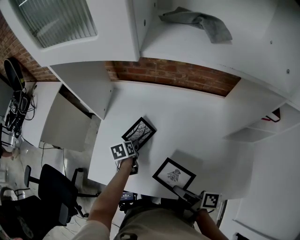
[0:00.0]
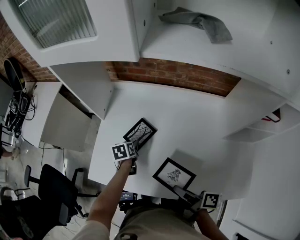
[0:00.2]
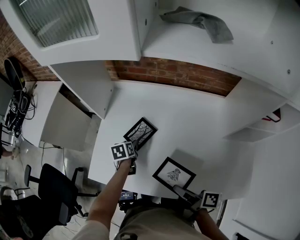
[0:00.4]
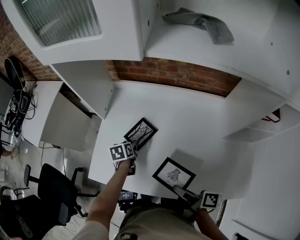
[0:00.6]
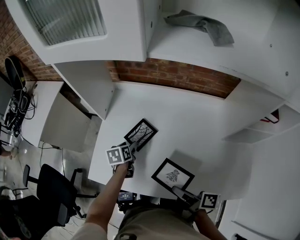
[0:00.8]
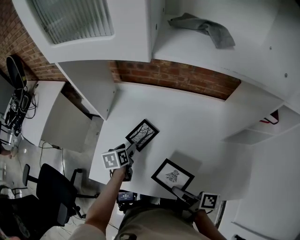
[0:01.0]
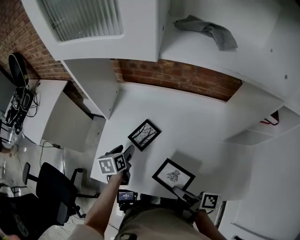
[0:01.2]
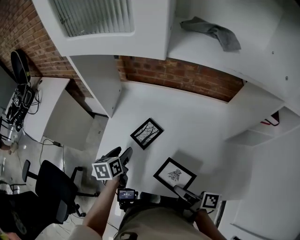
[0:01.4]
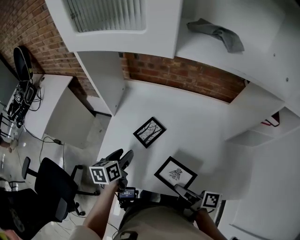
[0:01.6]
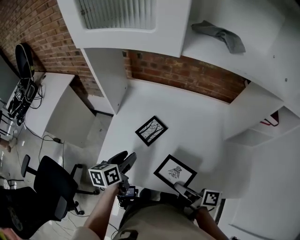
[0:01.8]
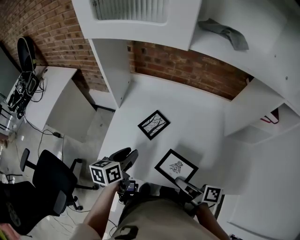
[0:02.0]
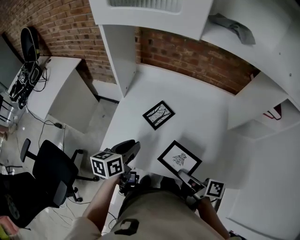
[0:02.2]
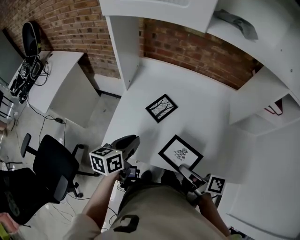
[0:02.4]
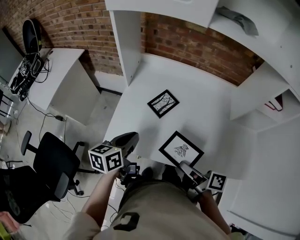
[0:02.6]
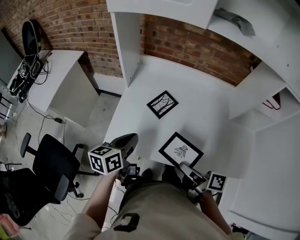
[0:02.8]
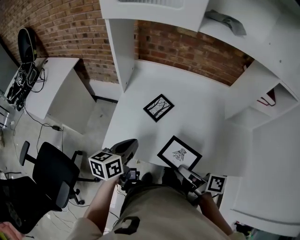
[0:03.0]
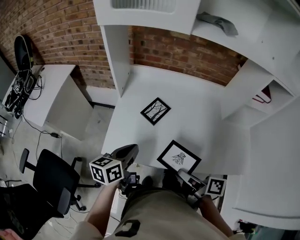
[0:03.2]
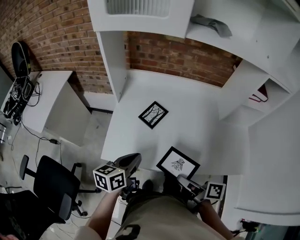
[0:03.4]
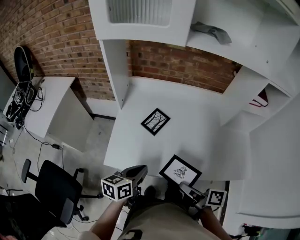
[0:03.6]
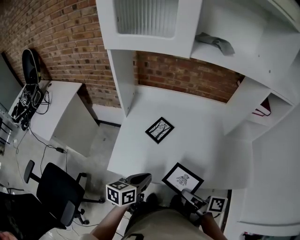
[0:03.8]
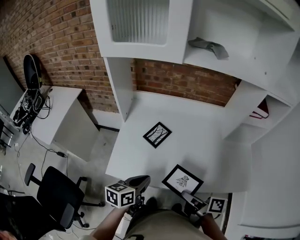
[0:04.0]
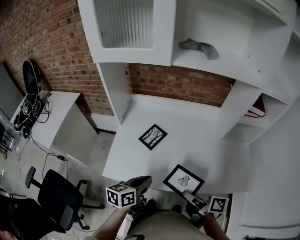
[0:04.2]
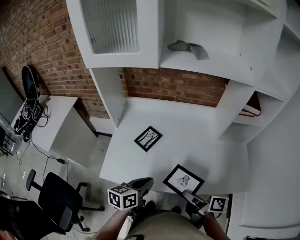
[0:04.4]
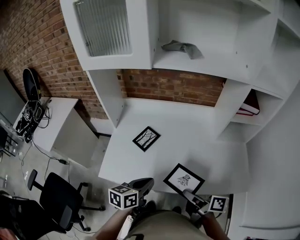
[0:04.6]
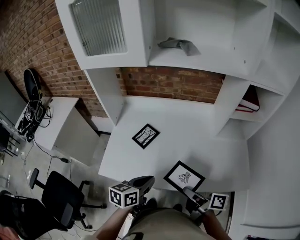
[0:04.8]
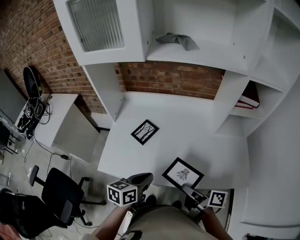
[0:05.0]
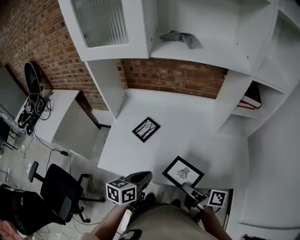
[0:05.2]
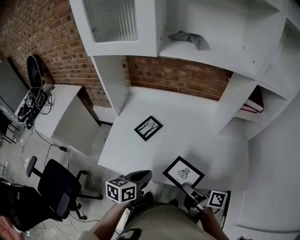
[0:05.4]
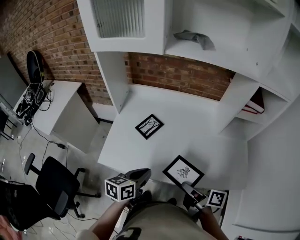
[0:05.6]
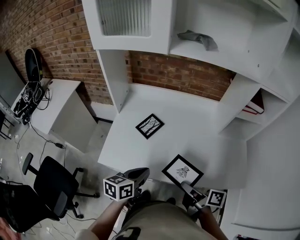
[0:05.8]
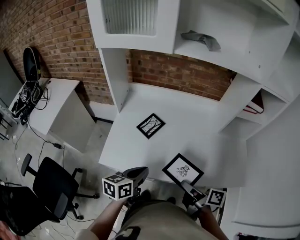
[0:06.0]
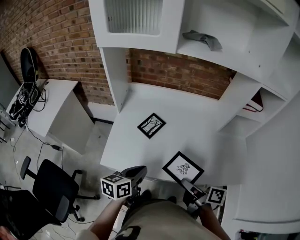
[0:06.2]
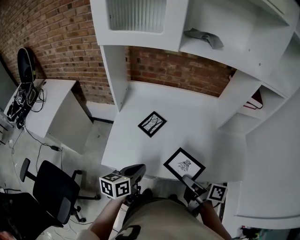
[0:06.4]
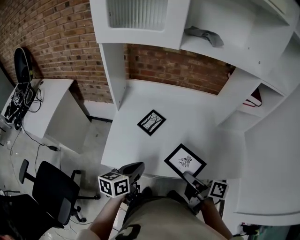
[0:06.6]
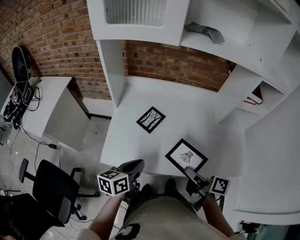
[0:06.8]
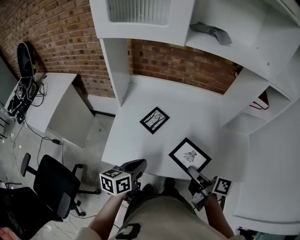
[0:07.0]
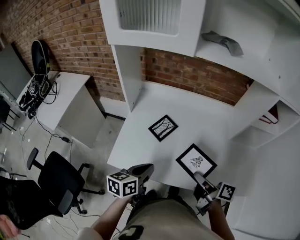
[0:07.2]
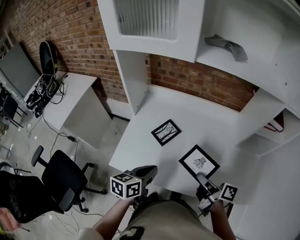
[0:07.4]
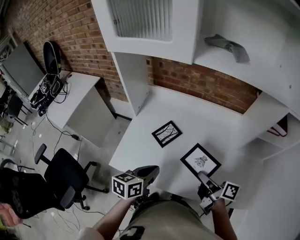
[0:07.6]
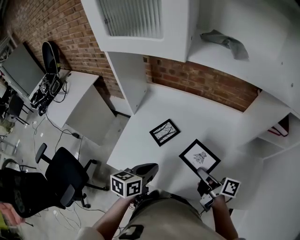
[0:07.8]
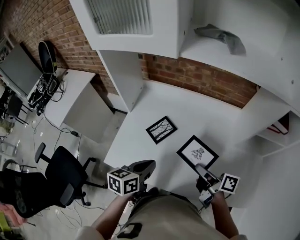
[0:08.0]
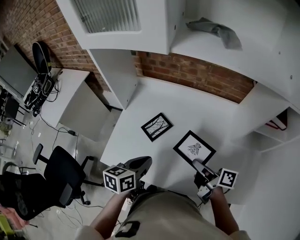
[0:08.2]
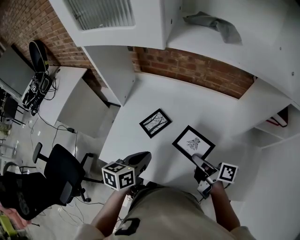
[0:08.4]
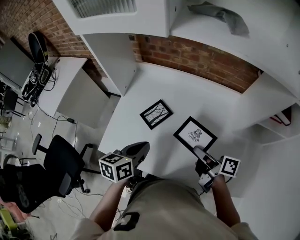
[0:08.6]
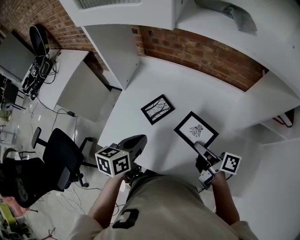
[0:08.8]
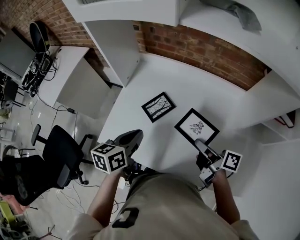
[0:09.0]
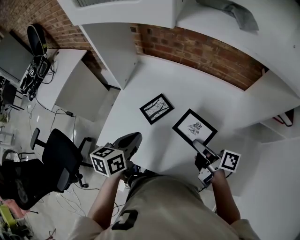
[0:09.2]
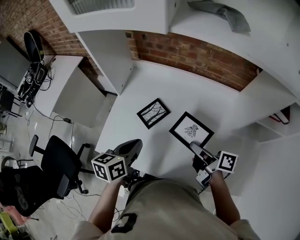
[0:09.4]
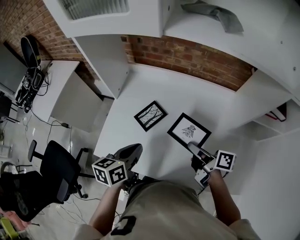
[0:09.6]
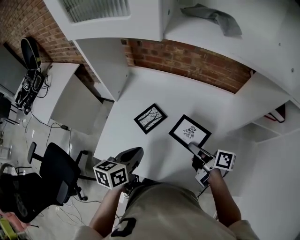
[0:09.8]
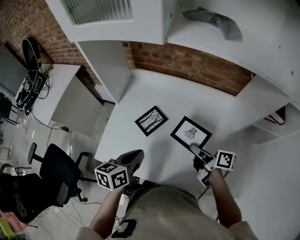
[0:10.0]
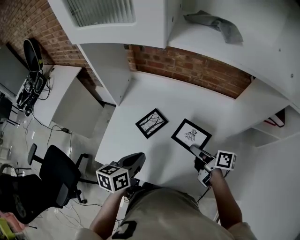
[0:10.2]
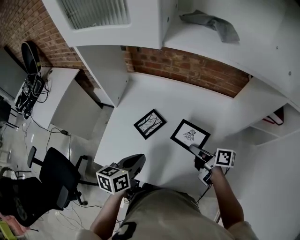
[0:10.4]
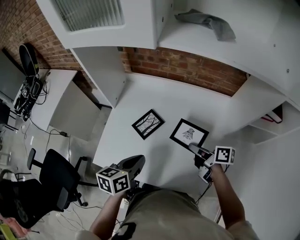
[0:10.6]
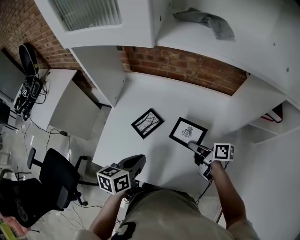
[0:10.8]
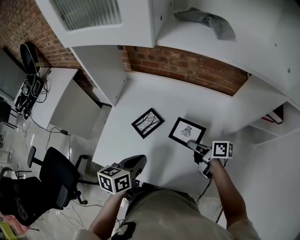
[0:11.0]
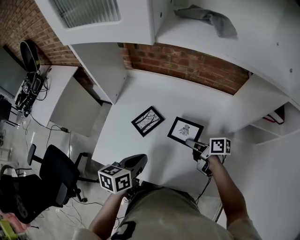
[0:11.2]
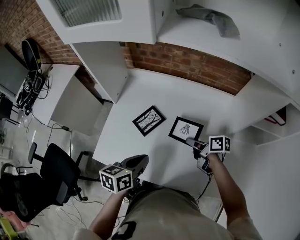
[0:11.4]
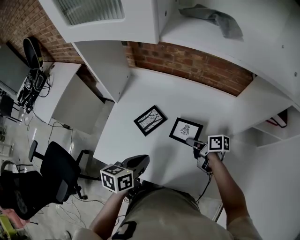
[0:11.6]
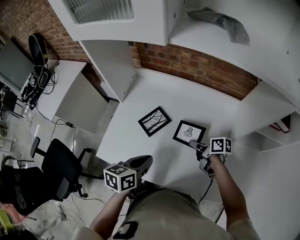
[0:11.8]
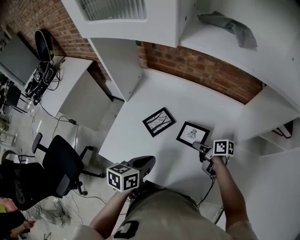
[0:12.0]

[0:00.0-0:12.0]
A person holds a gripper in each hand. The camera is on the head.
0:00.0 to 0:01.6: The left gripper is displaced upward by roughly 15 cm, and swivels approximately 20 degrees.
0:01.6 to 0:03.0: The left gripper moves approximately 10 cm, and closes up.
0:03.0 to 0:04.4: The left gripper moves approximately 15 cm.
0:06.0 to 0:07.6: The left gripper ends up roughly 5 cm from where it was.
0:07.6 to 0:09.0: The left gripper shifts by roughly 5 cm.

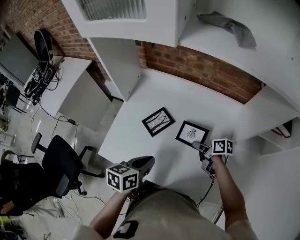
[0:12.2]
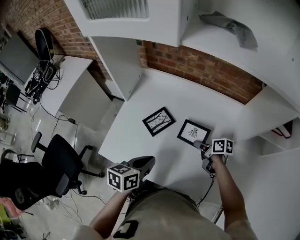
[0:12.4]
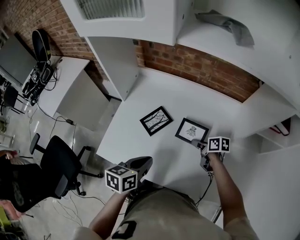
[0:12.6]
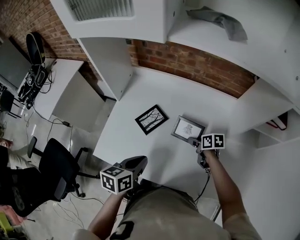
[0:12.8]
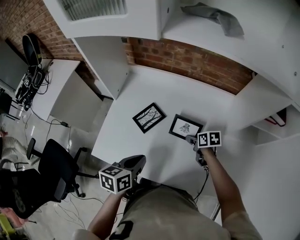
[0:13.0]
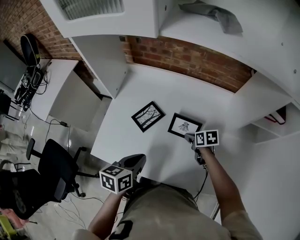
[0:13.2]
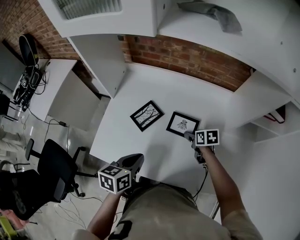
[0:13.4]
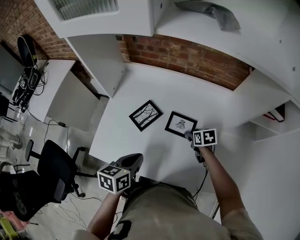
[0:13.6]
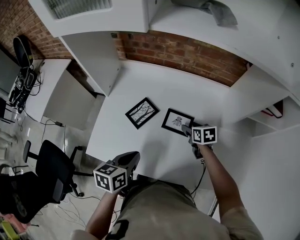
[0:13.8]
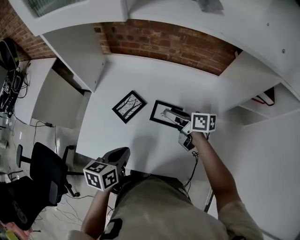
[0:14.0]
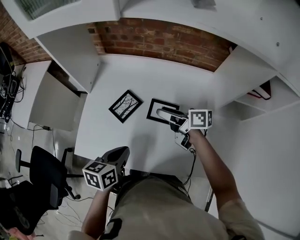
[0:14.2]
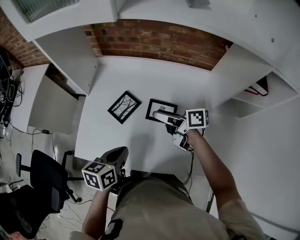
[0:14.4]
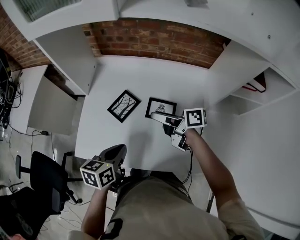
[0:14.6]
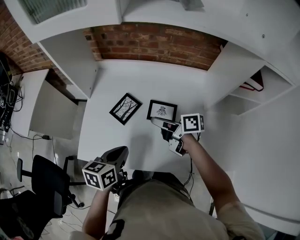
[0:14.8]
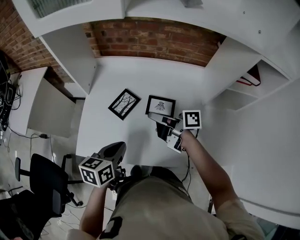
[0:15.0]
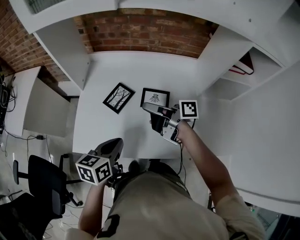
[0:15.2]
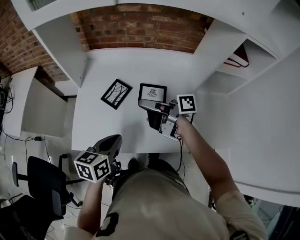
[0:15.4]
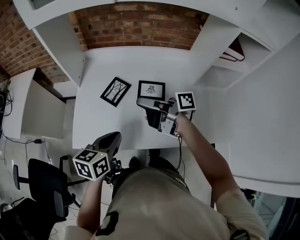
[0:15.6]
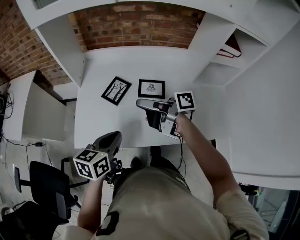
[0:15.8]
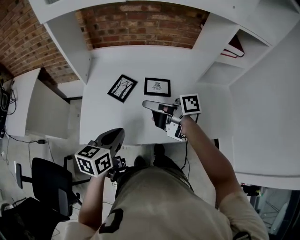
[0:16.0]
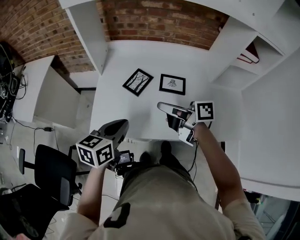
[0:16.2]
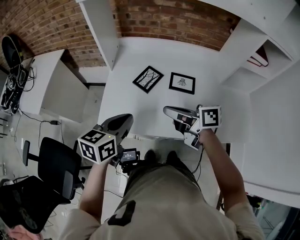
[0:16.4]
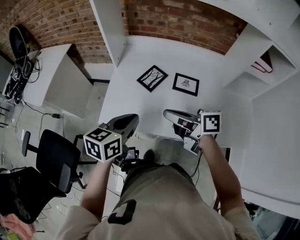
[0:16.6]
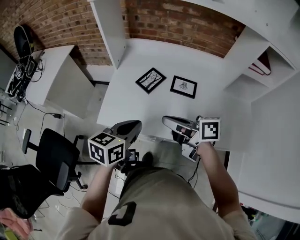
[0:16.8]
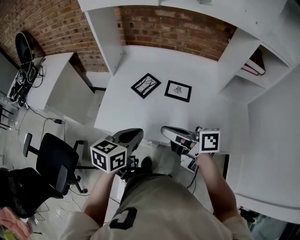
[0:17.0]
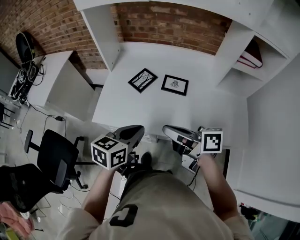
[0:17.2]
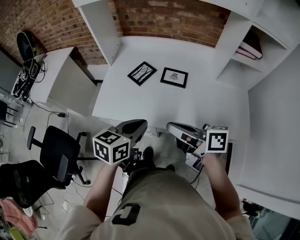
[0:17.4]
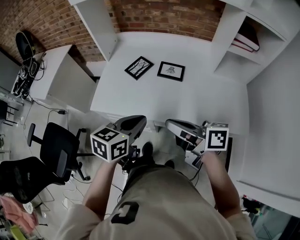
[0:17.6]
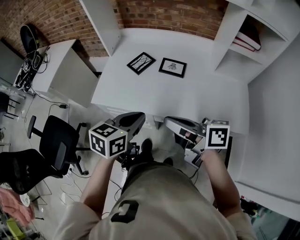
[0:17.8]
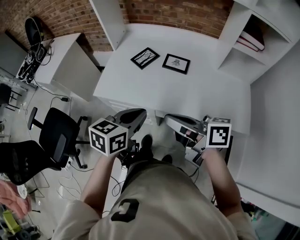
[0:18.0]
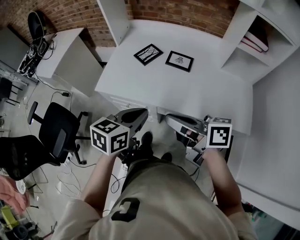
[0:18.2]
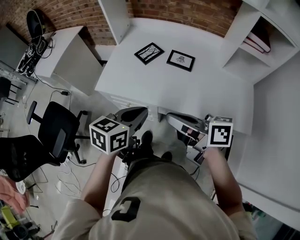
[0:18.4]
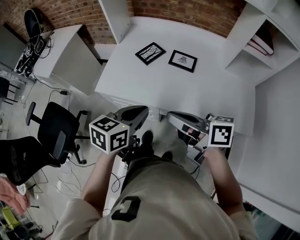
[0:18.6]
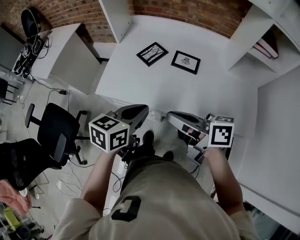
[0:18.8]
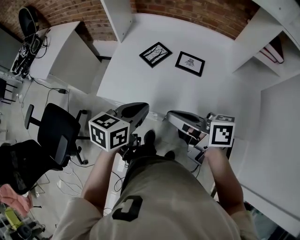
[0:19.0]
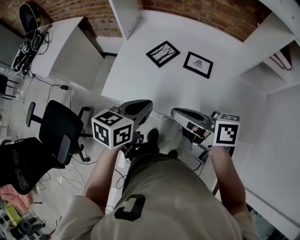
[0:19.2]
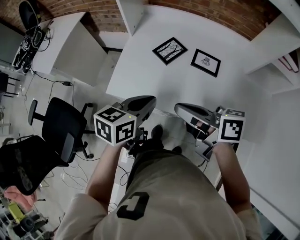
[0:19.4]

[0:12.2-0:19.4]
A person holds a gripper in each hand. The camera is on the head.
0:15.0 to 0:16.6: The left gripper changes place by some 10 cm.
0:16.6 to 0:18.0: The left gripper changes place by roughly 20 cm.
0:18.0 to 0:19.4: The left gripper changes place by about 15 cm.

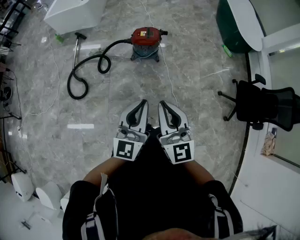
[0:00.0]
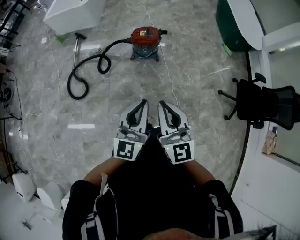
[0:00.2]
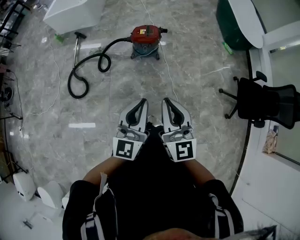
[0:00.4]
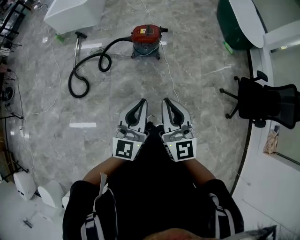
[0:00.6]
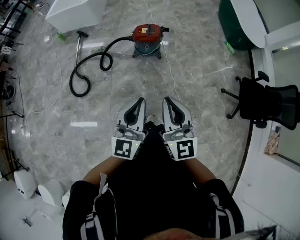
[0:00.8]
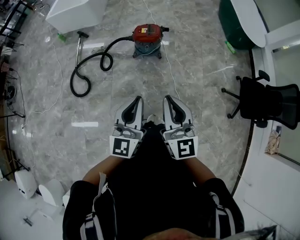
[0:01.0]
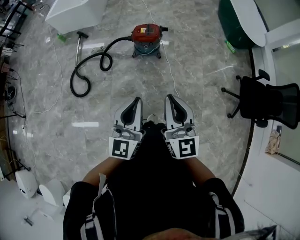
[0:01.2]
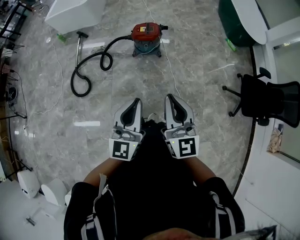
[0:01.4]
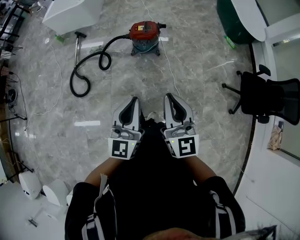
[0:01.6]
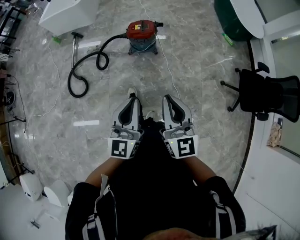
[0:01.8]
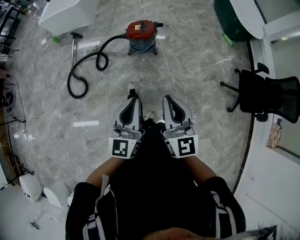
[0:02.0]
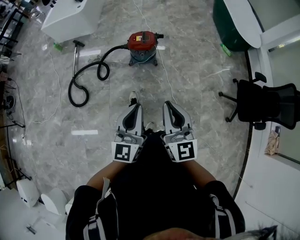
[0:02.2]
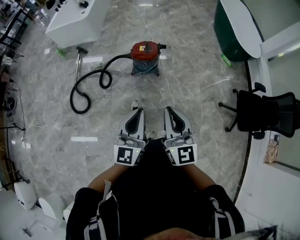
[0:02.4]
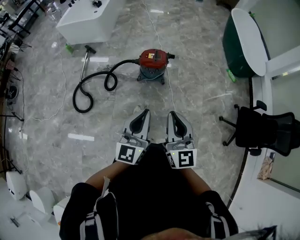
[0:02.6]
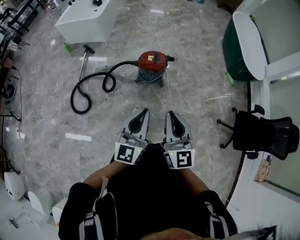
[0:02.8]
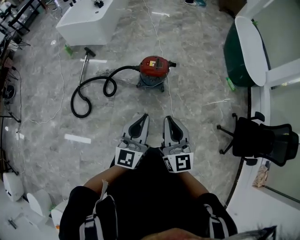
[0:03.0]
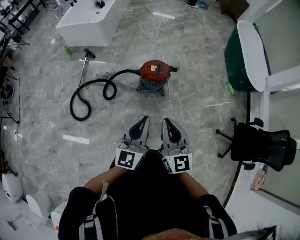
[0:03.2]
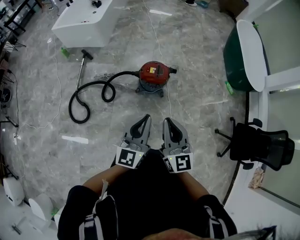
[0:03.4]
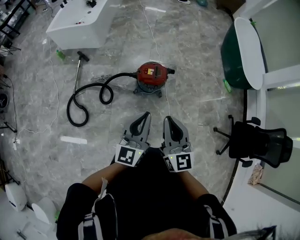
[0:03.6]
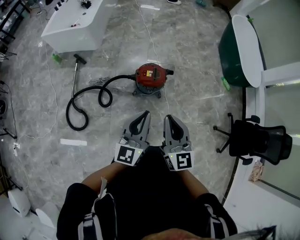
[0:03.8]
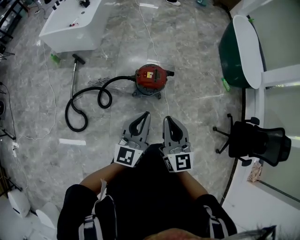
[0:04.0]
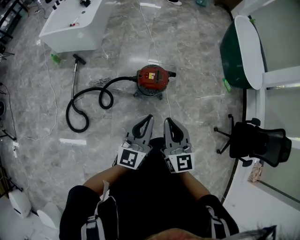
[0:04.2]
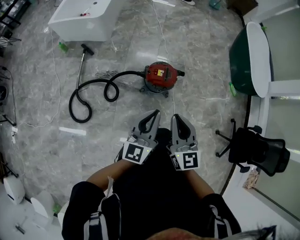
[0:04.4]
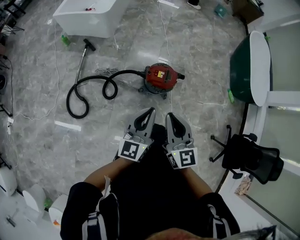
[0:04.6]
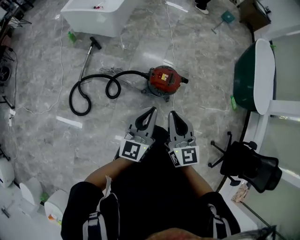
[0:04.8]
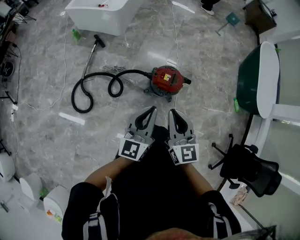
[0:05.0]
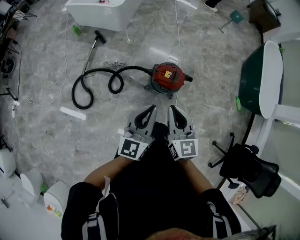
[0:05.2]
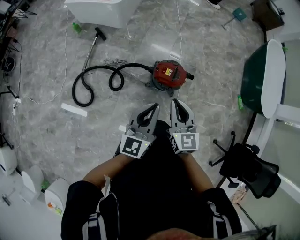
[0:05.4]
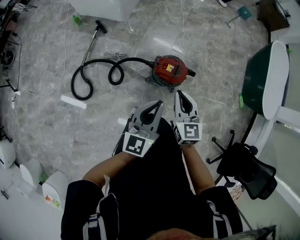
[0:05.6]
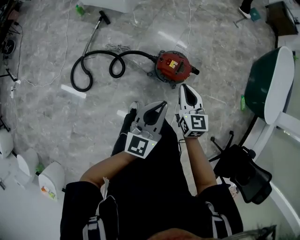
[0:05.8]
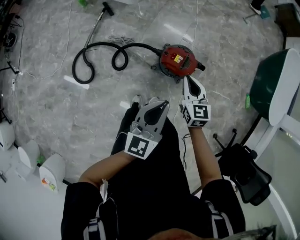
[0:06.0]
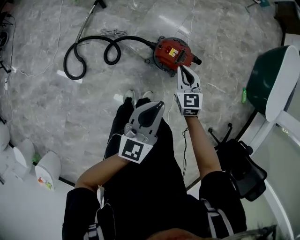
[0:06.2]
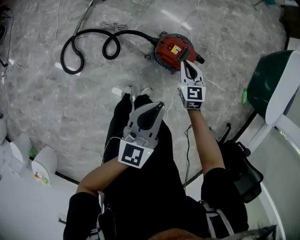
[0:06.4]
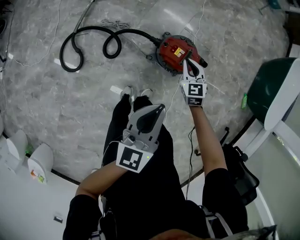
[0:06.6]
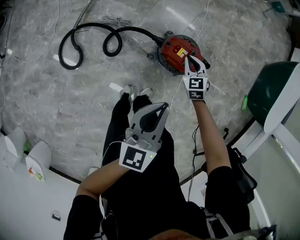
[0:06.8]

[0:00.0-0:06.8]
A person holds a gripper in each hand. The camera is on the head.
0:00.0 to 0:01.4: The right gripper shifts roughly 5 cm to the right.
0:01.4 to 0:02.8: The grippers both shift forward by some 10 cm.
0:02.8 to 0:04.0: The right gripper is displaced forward and to the left by roughly 25 cm. The left gripper travels forward by approximately 25 cm.
0:04.0 to 0:05.4: The right gripper shifts some 15 cm forward and downward. The left gripper travels forward by about 10 cm.
0:05.4 to 0:06.8: The right gripper shifts about 40 cm downward and forward, and changes its angle by some 30 degrees, while the left gripper travels downward and forward by some 15 cm.
